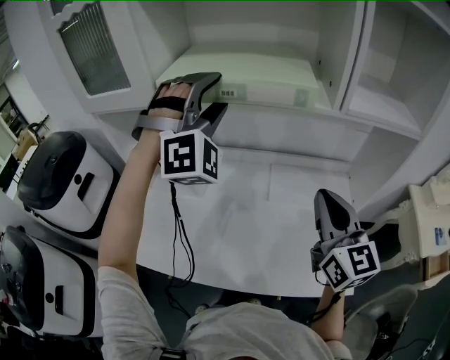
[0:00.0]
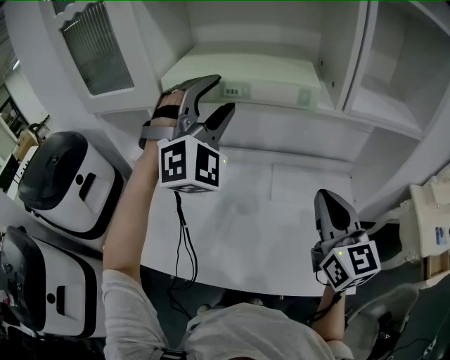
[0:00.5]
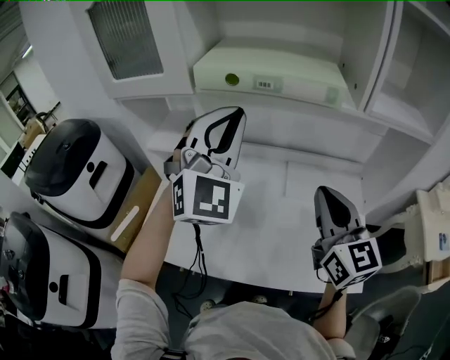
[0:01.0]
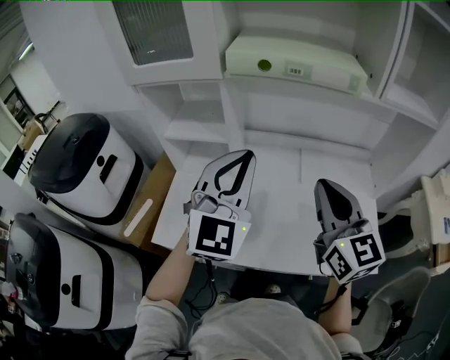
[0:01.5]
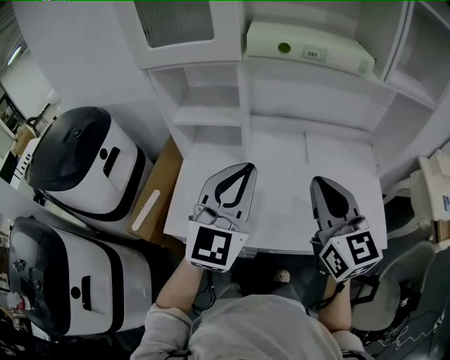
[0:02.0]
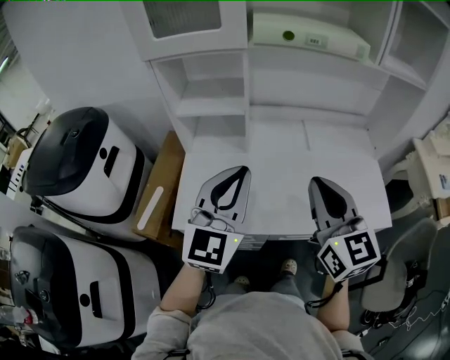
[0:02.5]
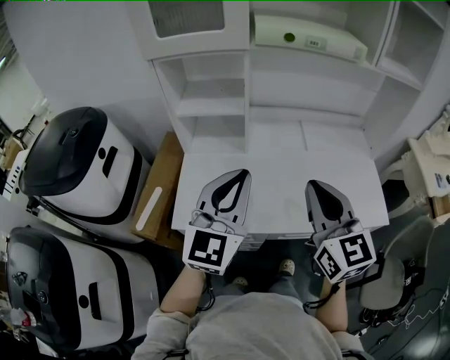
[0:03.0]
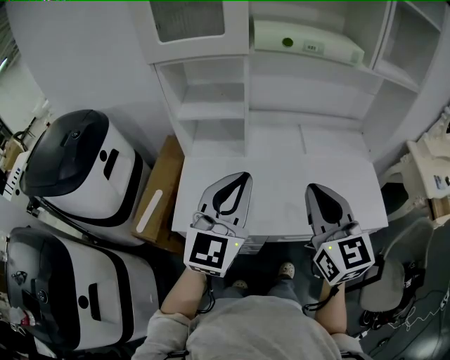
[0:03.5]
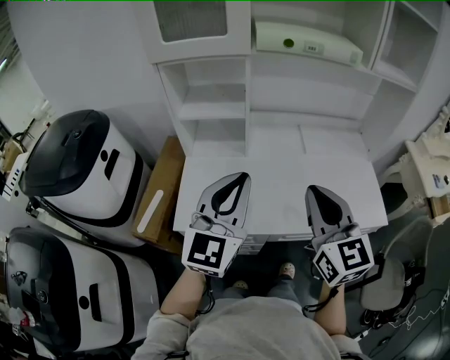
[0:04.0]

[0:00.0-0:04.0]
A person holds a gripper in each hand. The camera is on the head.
0:00.0 to 0:02.0: The right gripper is displaced to the left and backward by approximately 25 cm, while the left gripper heads backward, to the left and downward, covering some 30 cm, rotates around the line of its fingers by about 70 degrees, counterclockwise from behind, and closes its fingers.
0:02.0 to 0:04.0: Both grippers travel together backward and to the left, roughly 10 cm.

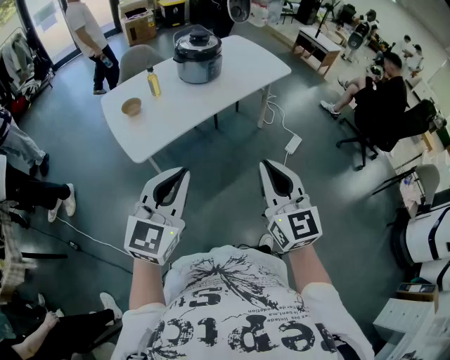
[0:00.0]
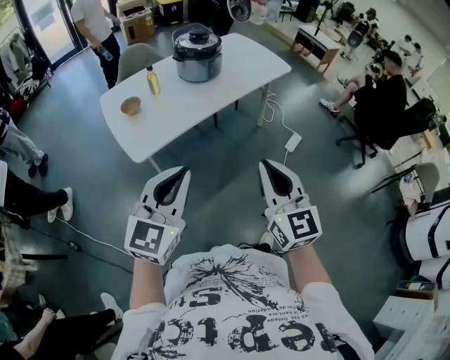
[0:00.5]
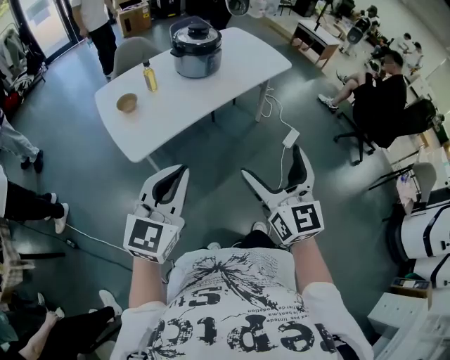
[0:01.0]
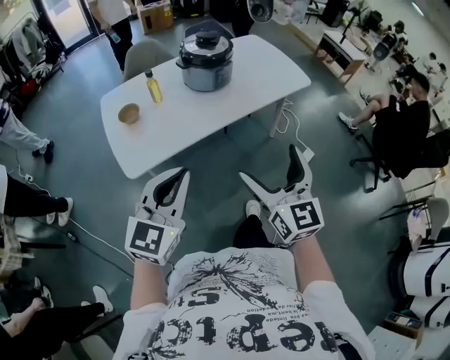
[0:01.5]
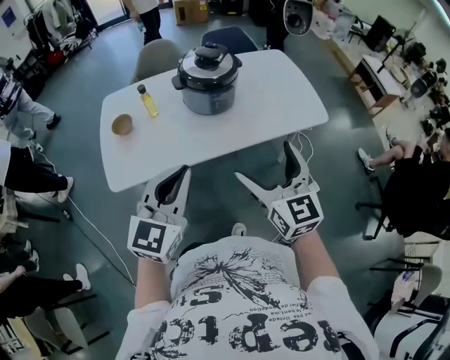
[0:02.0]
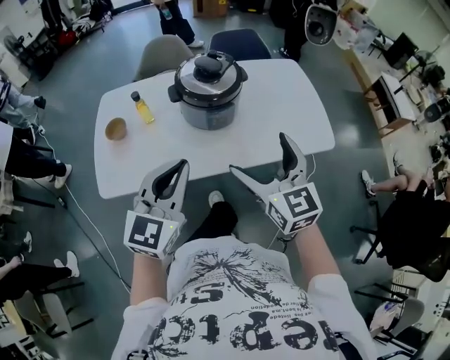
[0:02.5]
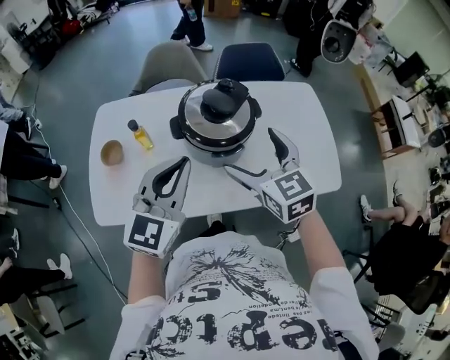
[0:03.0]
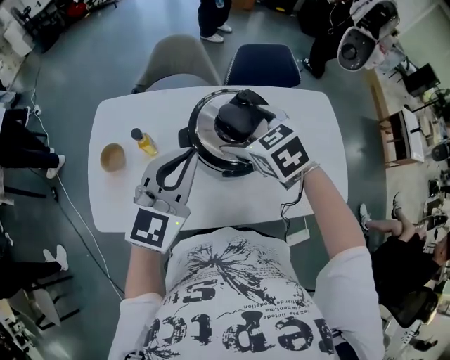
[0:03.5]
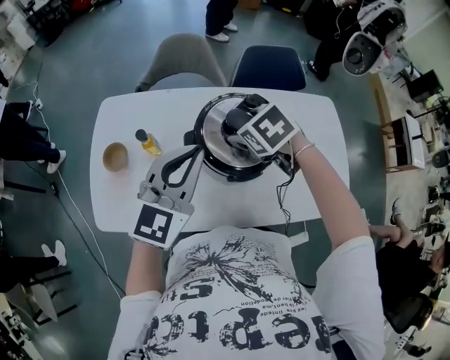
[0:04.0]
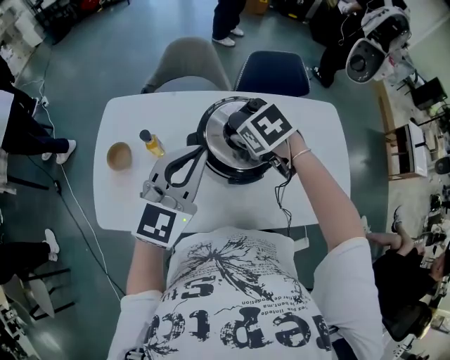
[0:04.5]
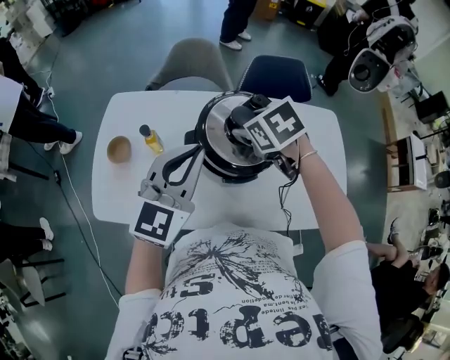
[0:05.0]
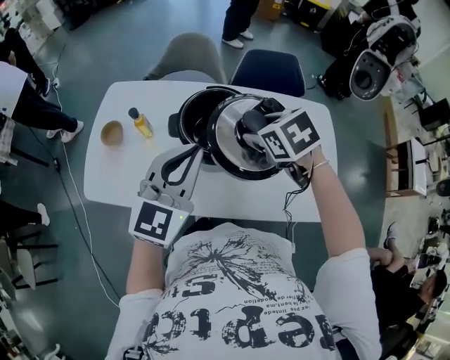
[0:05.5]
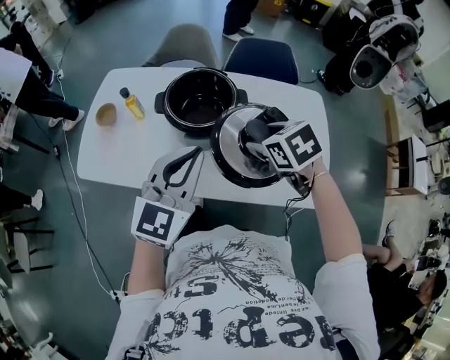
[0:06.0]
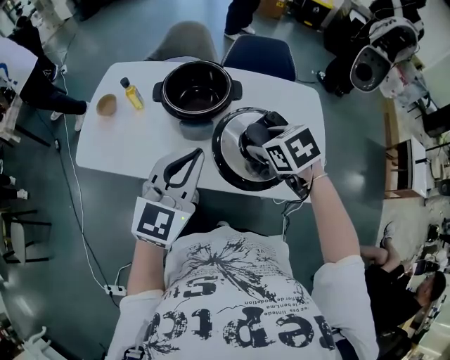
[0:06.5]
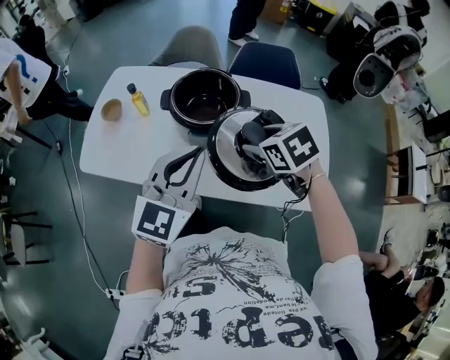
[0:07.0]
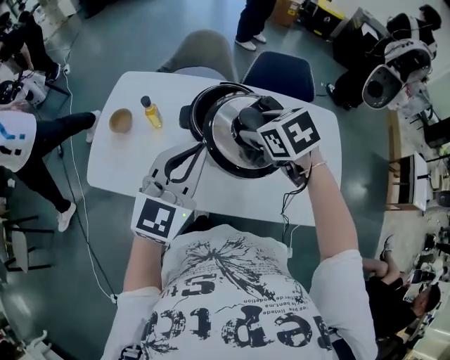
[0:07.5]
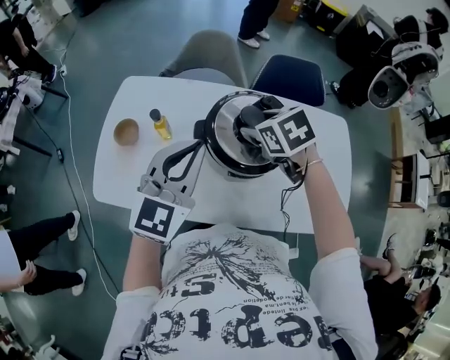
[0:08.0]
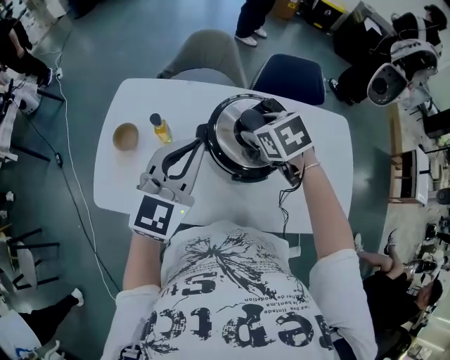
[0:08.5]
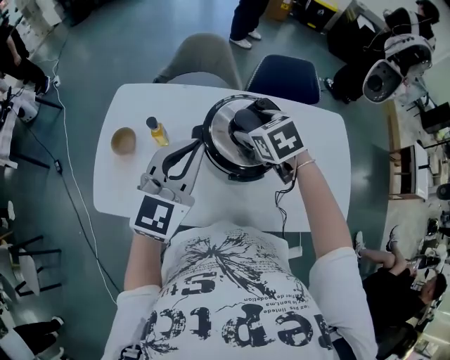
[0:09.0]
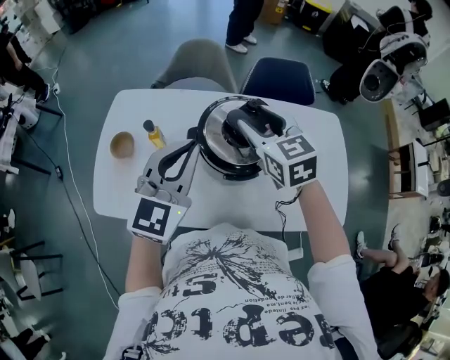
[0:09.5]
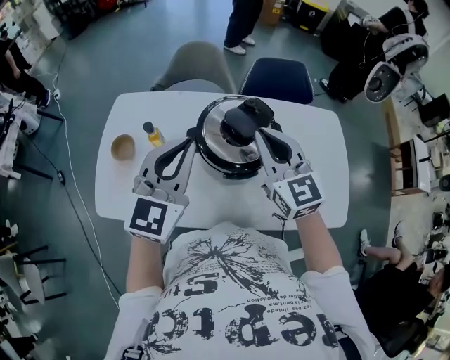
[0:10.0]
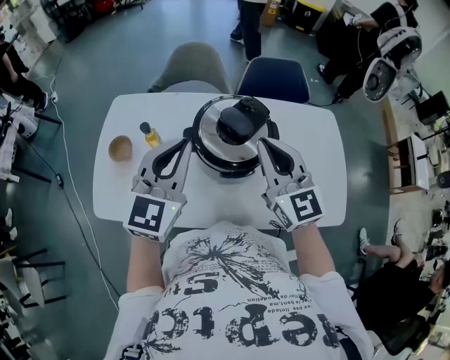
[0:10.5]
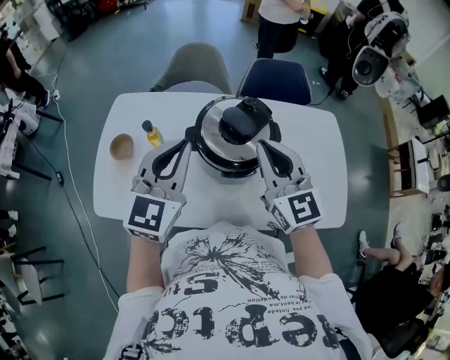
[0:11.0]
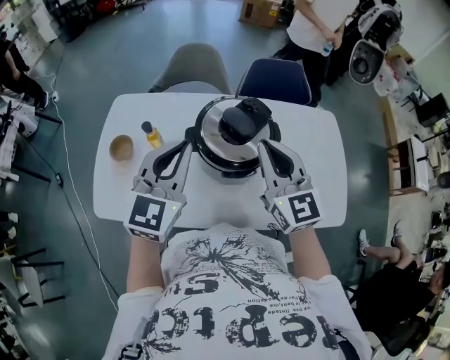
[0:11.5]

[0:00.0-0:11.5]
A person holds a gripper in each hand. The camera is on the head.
0:00.0 to 0:02.0: The pair of grippers is taken forward, roughly 40 cm. The left gripper turns by roughly 20 degrees; the right gripper turns by roughly 20 degrees, and opens.
0:02.0 to 0:04.0: The two grippers travel together, forward, about 50 cm. The right gripper tips its fingers downward by roughly 60 degrees, and closes.
0:04.0 to 0:06.0: Both grippers move backward and to the right, roughly 25 cm.
0:06.0 to 0:07.5: The grippers both shift to the left and forward by some 15 cm.
0:07.5 to 0:09.5: The left gripper shifts approximately 10 cm forward and to the left, while the right gripper shifts approximately 5 cm forward, and turns by approximately 30 degrees.
0:09.5 to 0:11.5: The right gripper shifts roughly 10 cm backward, changes its angle by some 20 degrees, and closes.

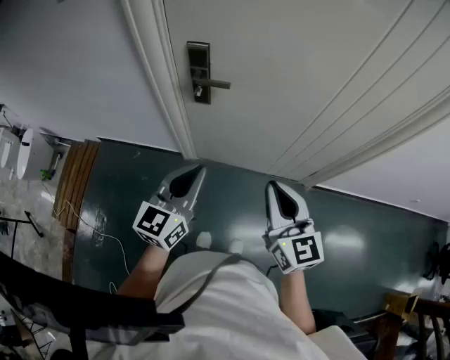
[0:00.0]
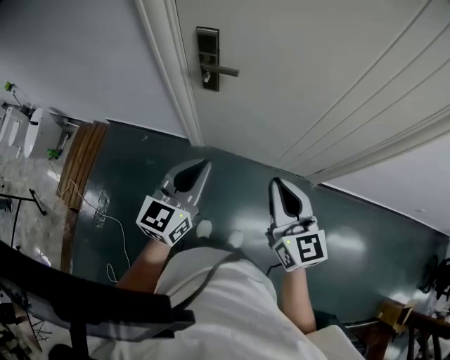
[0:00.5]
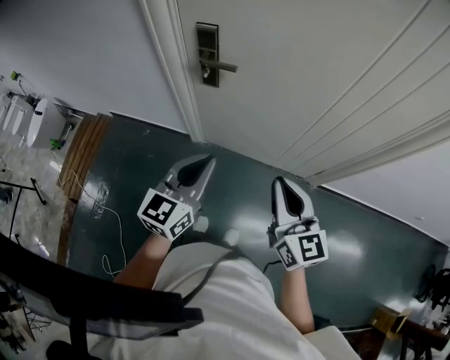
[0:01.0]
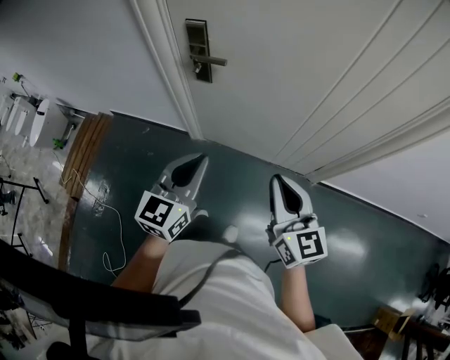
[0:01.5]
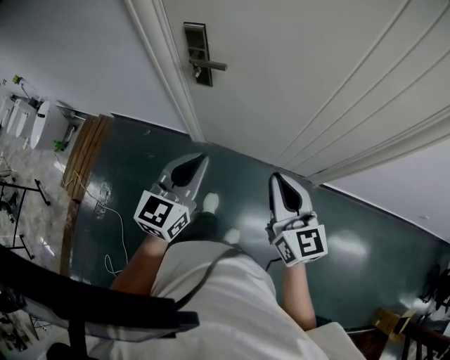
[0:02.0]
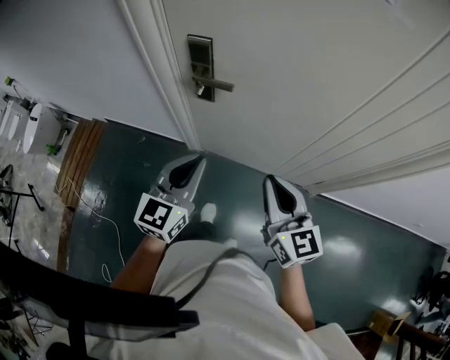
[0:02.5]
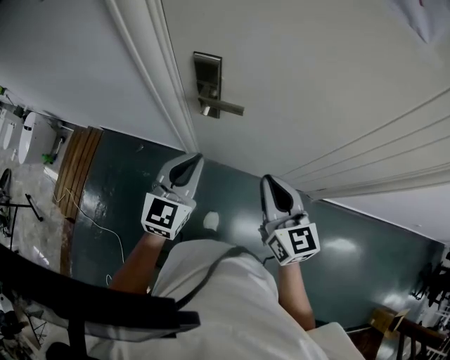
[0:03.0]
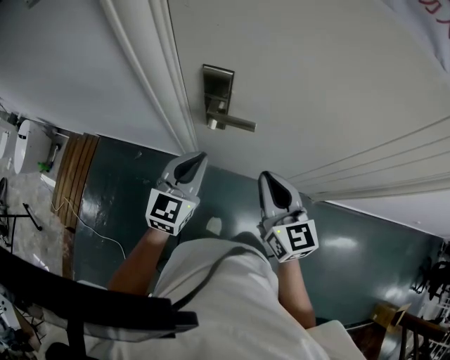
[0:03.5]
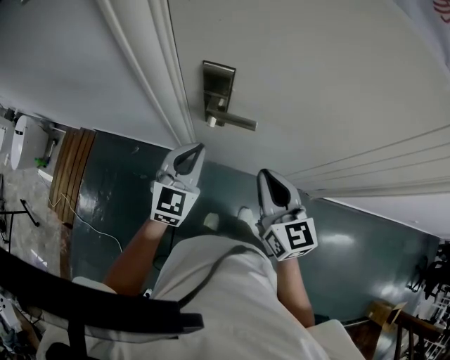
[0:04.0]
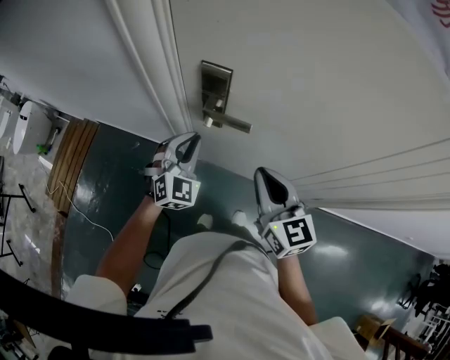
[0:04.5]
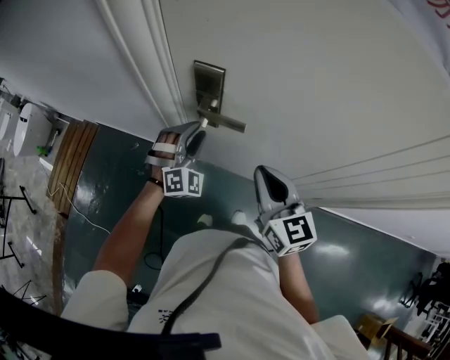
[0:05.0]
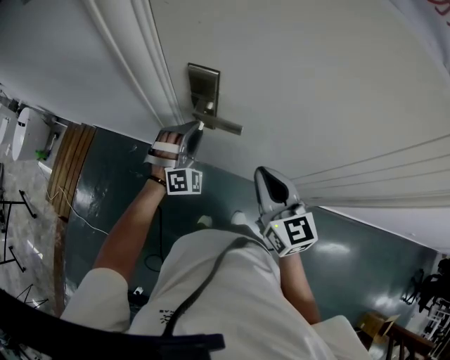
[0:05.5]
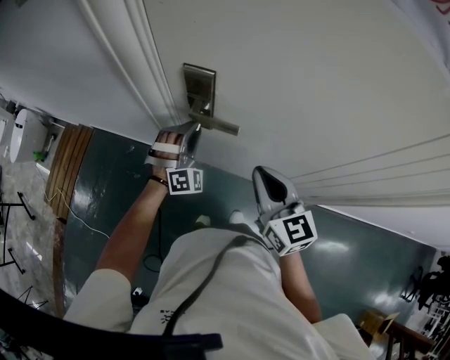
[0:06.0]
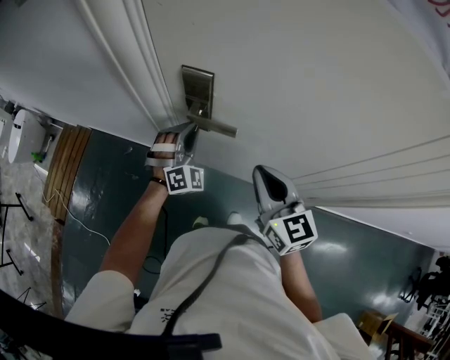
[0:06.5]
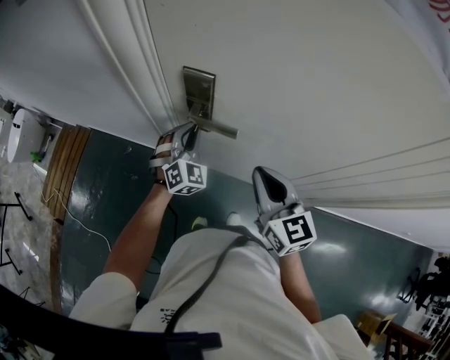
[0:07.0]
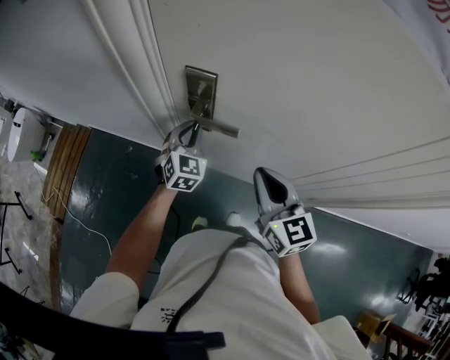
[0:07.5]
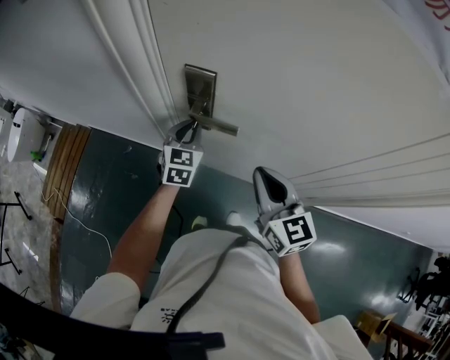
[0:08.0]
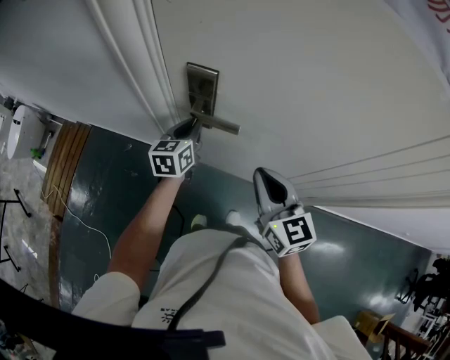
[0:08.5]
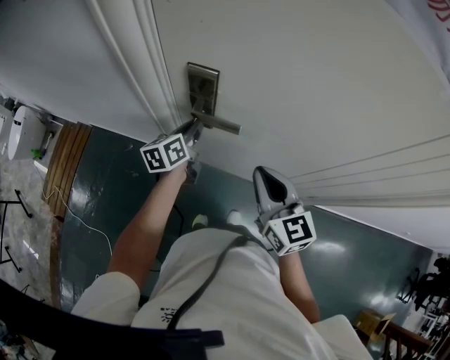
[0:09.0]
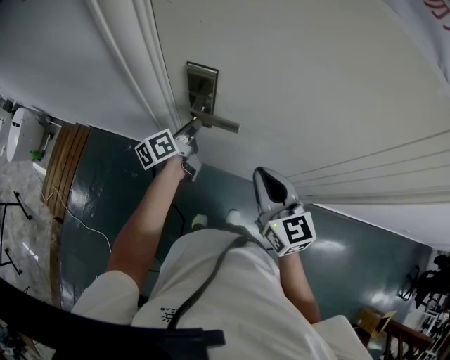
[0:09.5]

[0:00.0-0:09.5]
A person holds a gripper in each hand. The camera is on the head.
0:00.0 to 0:02.0: Both grippers travel together to the right, about 5 cm.
0:02.0 to 0:04.0: Both grippers travel together forward and to the left, roughly 30 cm.
0:04.0 to 0:05.5: The left gripper goes roughly 10 cm forward and downward, rolls clockwise, seen from behind, by roughly 60 degrees, and opens up.
0:05.5 to 0:07.5: The left gripper rotates around the line of its fingers by roughly 50 degrees, counterclockwise from behind, and closes its fingers.
0:07.5 to 0:09.5: The left gripper twists approximately 80 degrees counterclockwise, seen from behind.

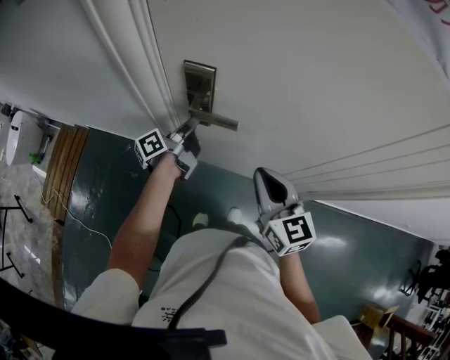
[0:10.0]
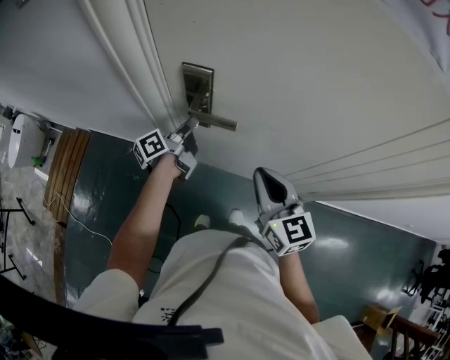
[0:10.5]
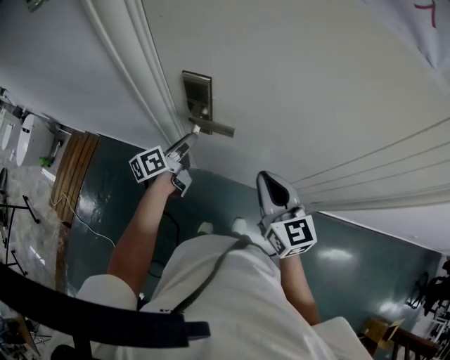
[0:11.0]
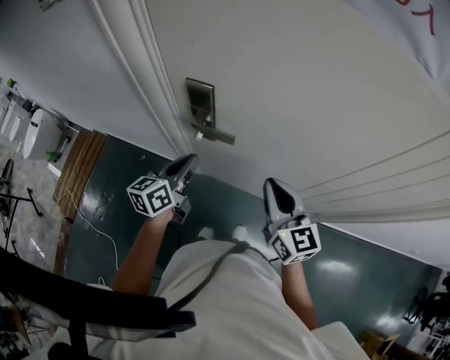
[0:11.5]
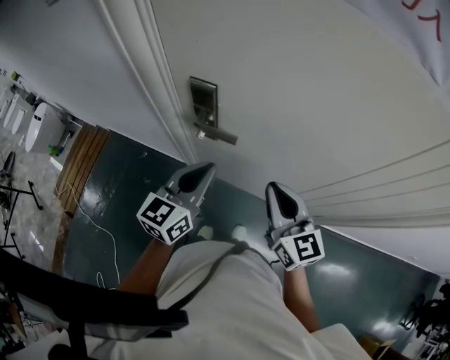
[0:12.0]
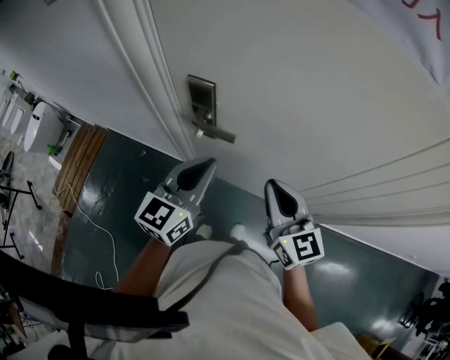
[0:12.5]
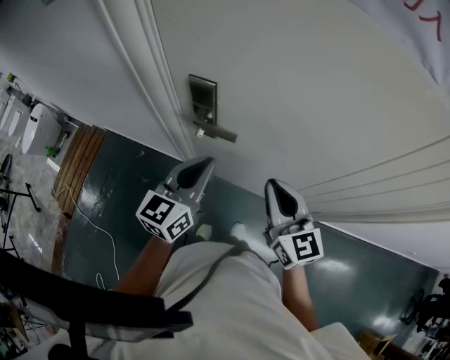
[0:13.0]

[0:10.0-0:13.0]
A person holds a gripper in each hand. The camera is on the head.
0:10.0 to 0:11.5: The left gripper moves backward and upward, roughly 10 cm, rolls clockwise, seen from behind, by approximately 40 degrees, and opens, then closes once more.
0:11.5 to 0:13.0: The left gripper shifts about 10 cm upward and to the right, and turns by some 20 degrees.
